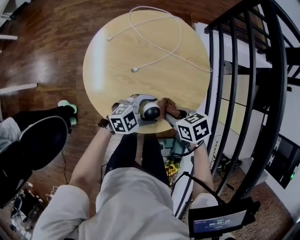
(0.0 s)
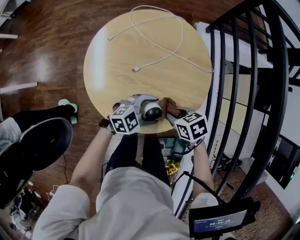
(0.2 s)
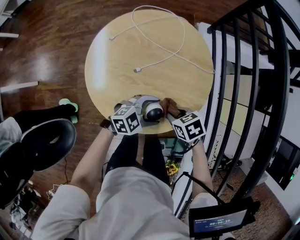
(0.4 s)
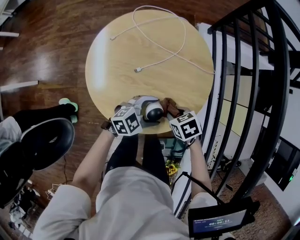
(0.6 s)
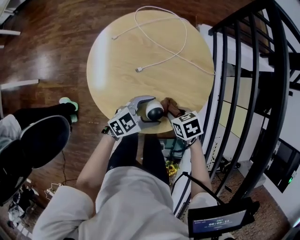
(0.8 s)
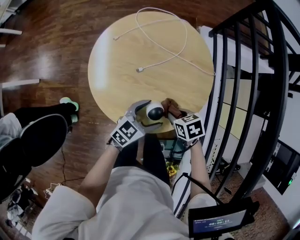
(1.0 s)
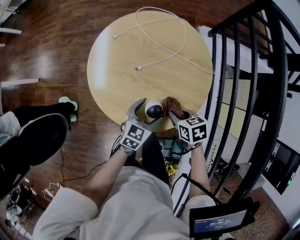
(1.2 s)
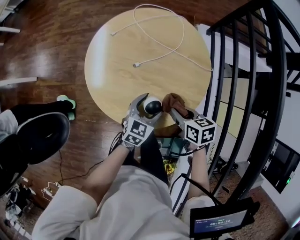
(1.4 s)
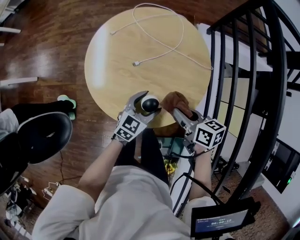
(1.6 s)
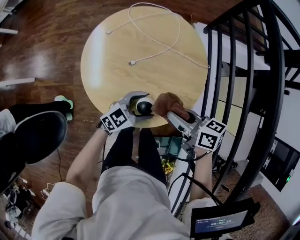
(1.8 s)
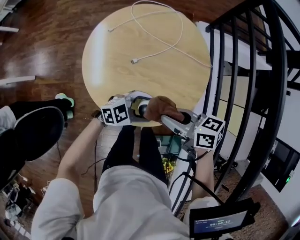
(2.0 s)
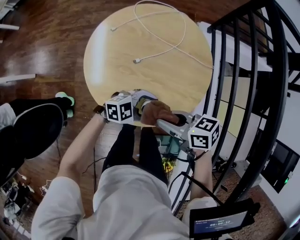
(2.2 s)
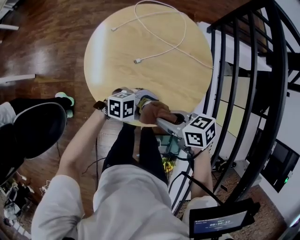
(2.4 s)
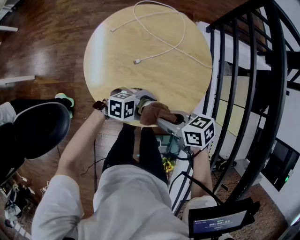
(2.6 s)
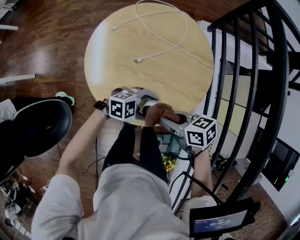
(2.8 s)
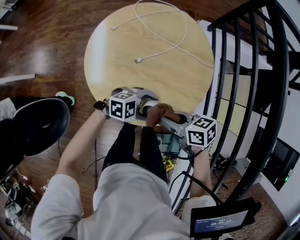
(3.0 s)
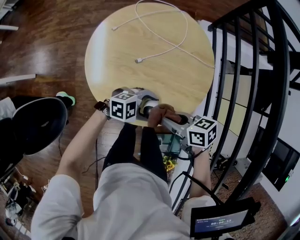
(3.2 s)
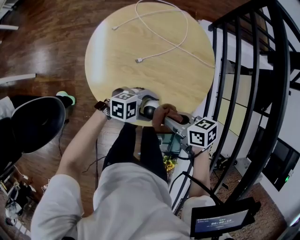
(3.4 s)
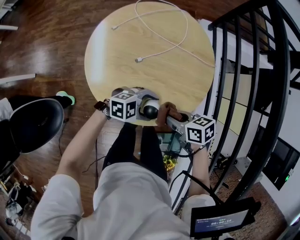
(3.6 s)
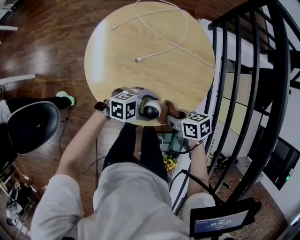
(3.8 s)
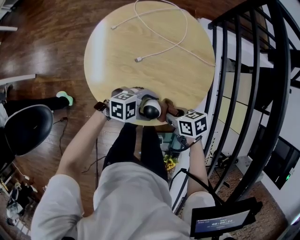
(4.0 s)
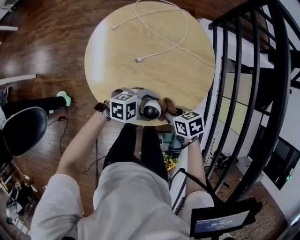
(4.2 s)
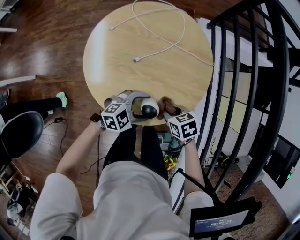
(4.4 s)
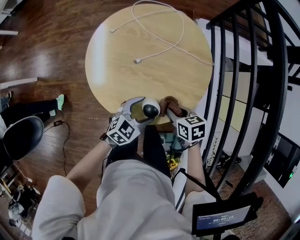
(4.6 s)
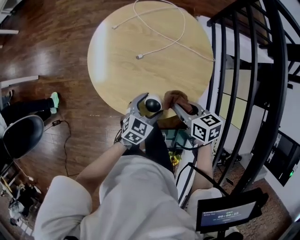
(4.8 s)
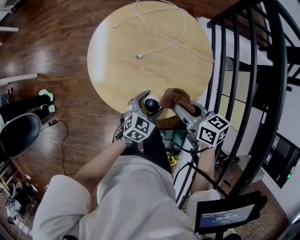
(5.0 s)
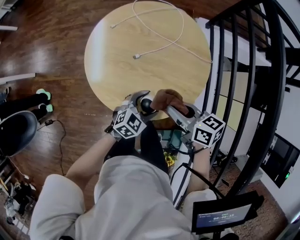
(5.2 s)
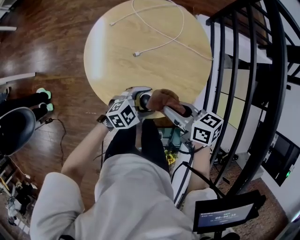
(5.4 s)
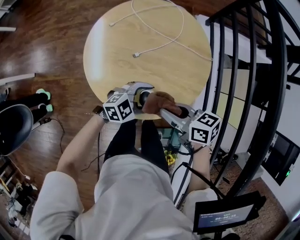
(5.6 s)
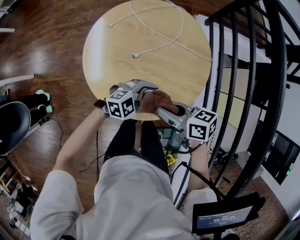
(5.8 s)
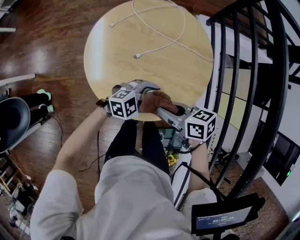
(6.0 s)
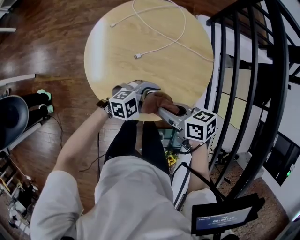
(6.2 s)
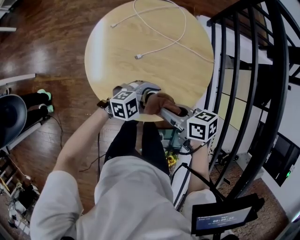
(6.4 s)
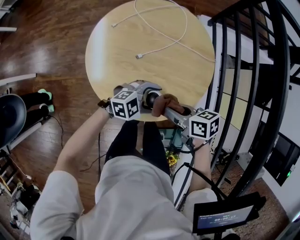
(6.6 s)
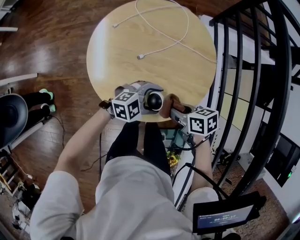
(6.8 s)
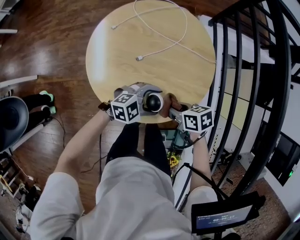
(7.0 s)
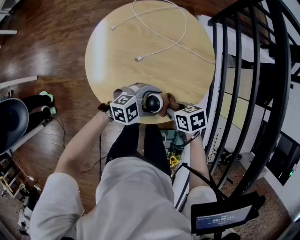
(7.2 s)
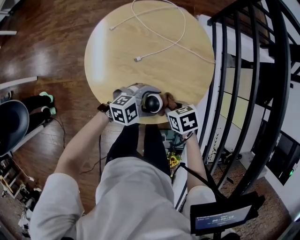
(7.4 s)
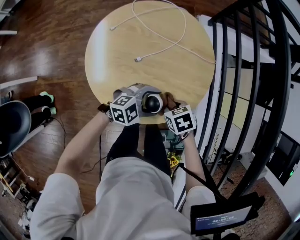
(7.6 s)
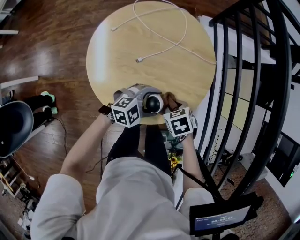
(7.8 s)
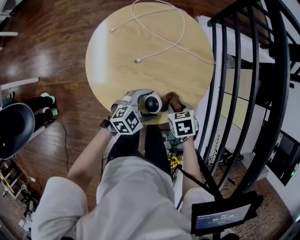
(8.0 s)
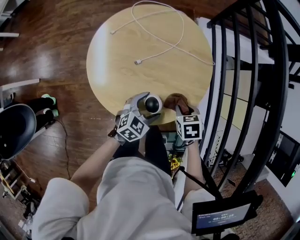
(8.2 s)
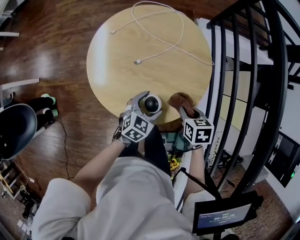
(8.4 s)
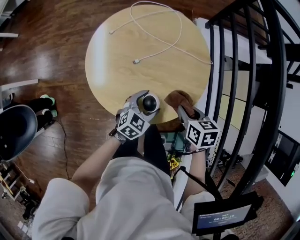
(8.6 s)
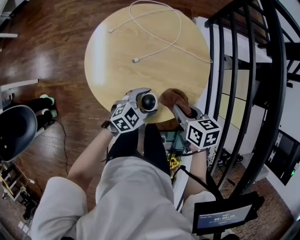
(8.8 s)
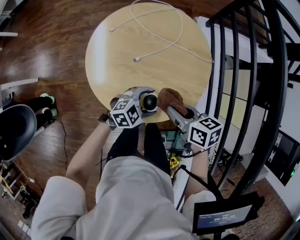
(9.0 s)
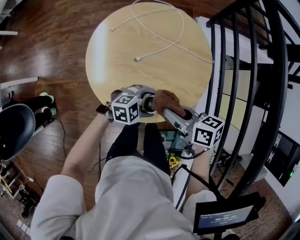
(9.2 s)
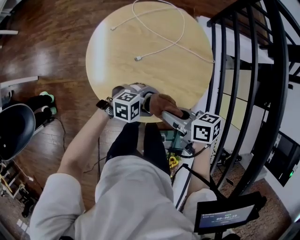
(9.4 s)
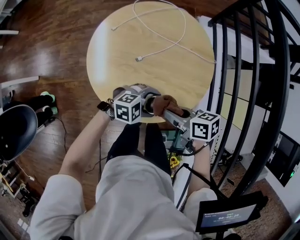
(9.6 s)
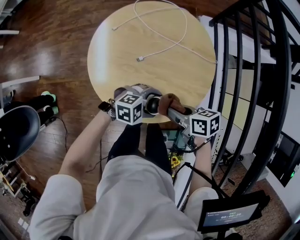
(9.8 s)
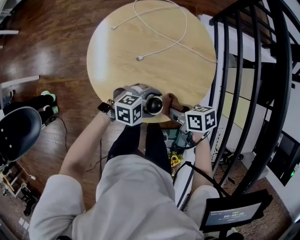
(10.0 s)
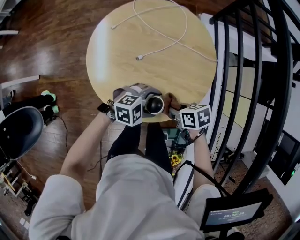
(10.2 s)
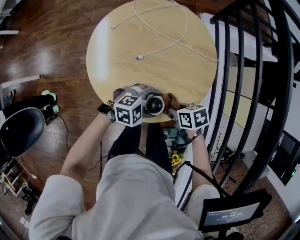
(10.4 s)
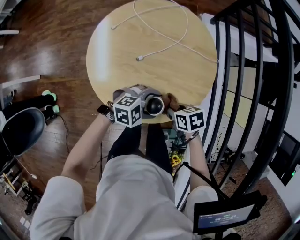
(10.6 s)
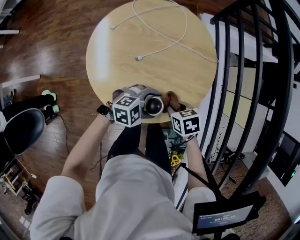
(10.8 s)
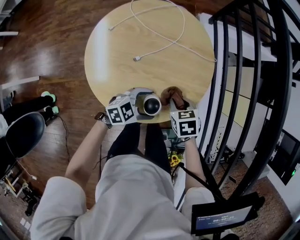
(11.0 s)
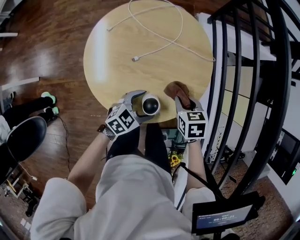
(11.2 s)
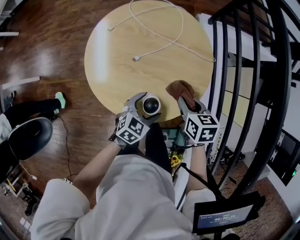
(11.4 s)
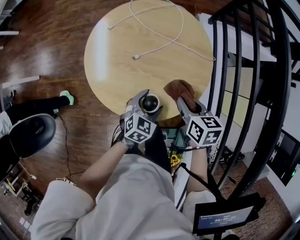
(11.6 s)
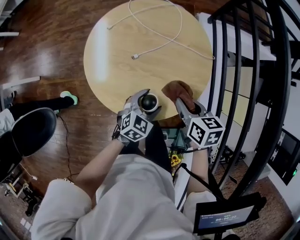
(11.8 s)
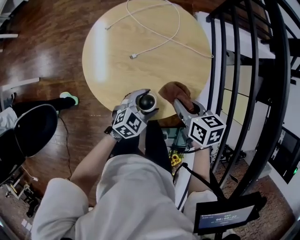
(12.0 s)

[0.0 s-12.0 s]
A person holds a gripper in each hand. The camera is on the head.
0.0 to 1.6 s: The right gripper shifts by roughly 5 cm, and turns by some 30 degrees. The left gripper rotates approximately 40 degrees.
1.6 to 3.0 s: The right gripper shifts by about 5 cm, while the left gripper changes place by approximately 5 cm, and rotates roughly 60 degrees.
3.0 to 4.4 s: The right gripper is displaced downward by about 10 cm, and rotates about 30 degrees.
4.4 to 6.0 s: The right gripper is displaced upward by approximately 10 cm, and changes its angle by approximately 30 degrees.
6.0 to 7.6 s: The right gripper heads downward, covering approximately 10 cm, and angles its fingers downward, by some 40 degrees.
7.6 to 9.0 s: The right gripper moves upward, some 10 cm, and tips its fingers upward by roughly 30 degrees.
9.0 to 10.4 s: The right gripper goes roughly 10 cm downward, and changes its angle by about 20 degrees.
10.4 to 12.0 s: The left gripper swivels approximately 40 degrees. The right gripper moves upward, about 10 cm, and rotates roughly 20 degrees.

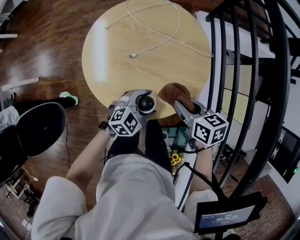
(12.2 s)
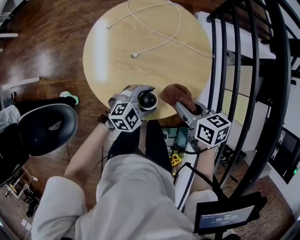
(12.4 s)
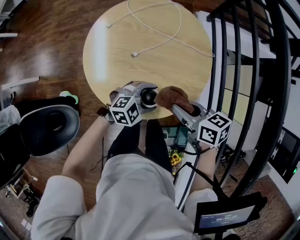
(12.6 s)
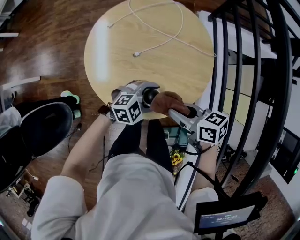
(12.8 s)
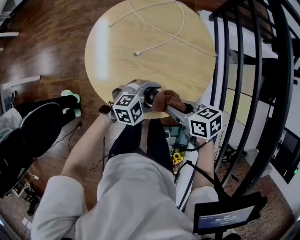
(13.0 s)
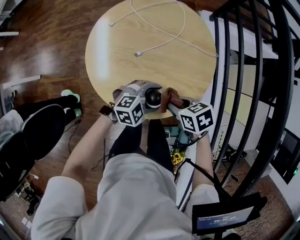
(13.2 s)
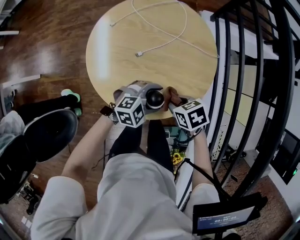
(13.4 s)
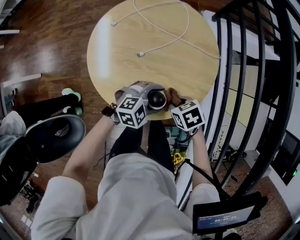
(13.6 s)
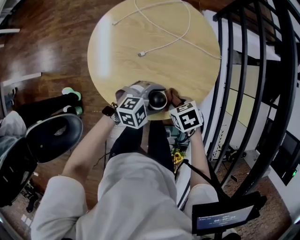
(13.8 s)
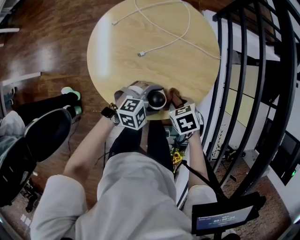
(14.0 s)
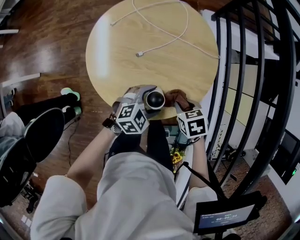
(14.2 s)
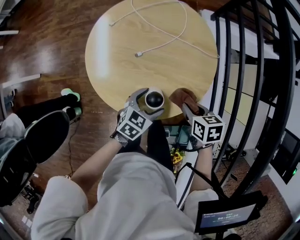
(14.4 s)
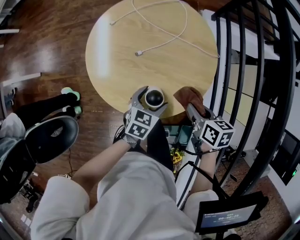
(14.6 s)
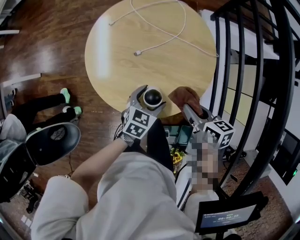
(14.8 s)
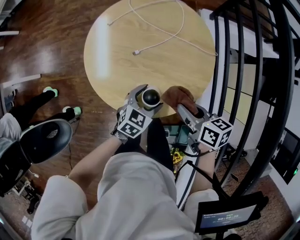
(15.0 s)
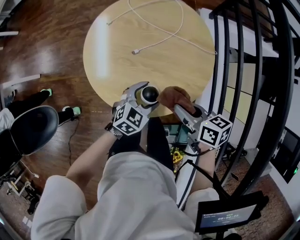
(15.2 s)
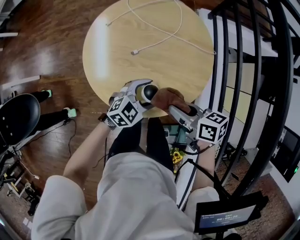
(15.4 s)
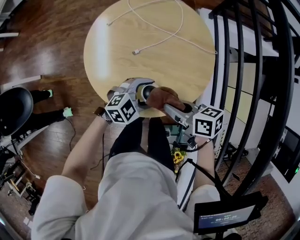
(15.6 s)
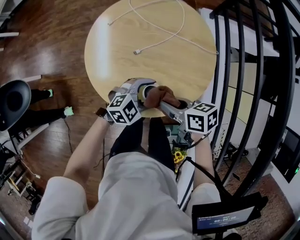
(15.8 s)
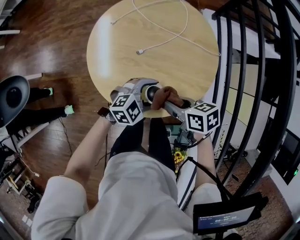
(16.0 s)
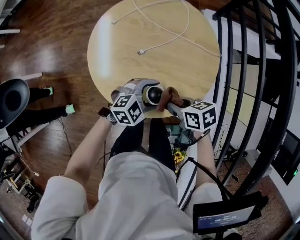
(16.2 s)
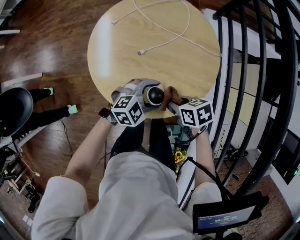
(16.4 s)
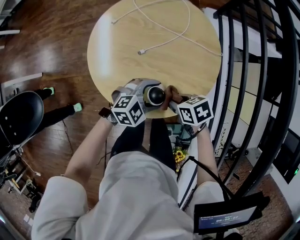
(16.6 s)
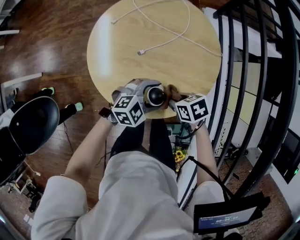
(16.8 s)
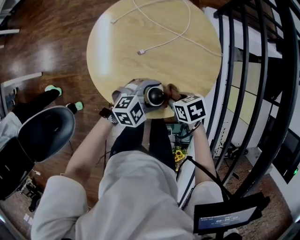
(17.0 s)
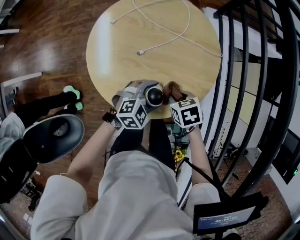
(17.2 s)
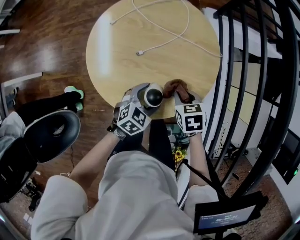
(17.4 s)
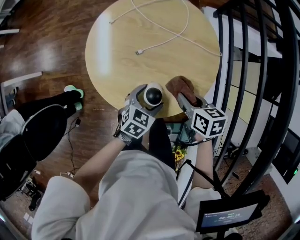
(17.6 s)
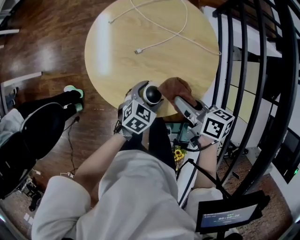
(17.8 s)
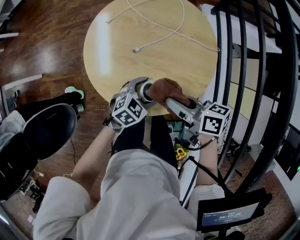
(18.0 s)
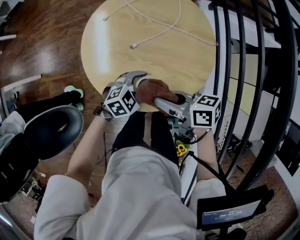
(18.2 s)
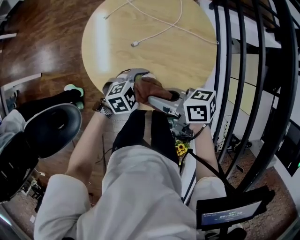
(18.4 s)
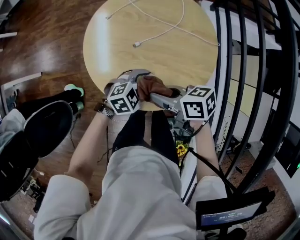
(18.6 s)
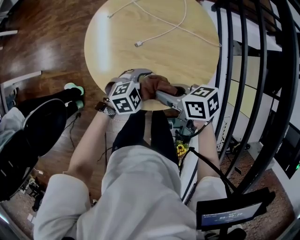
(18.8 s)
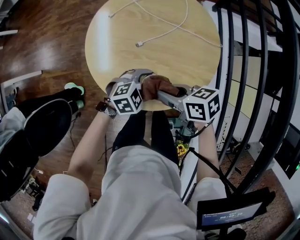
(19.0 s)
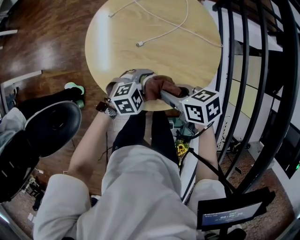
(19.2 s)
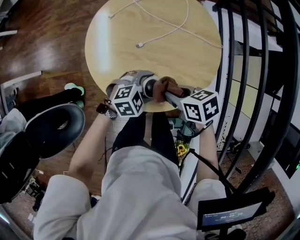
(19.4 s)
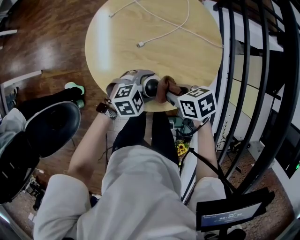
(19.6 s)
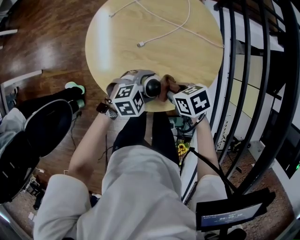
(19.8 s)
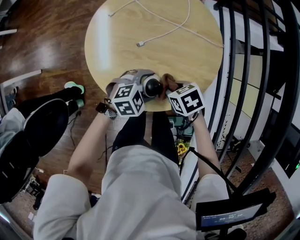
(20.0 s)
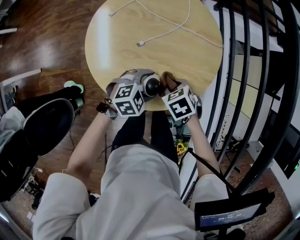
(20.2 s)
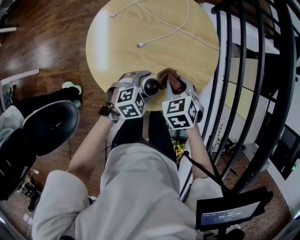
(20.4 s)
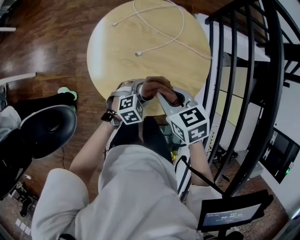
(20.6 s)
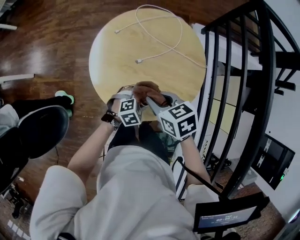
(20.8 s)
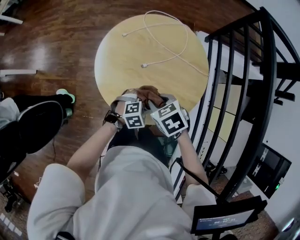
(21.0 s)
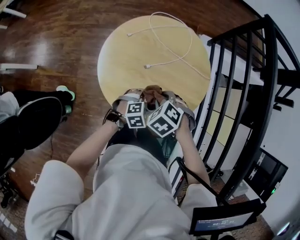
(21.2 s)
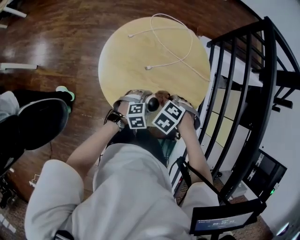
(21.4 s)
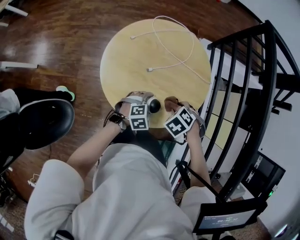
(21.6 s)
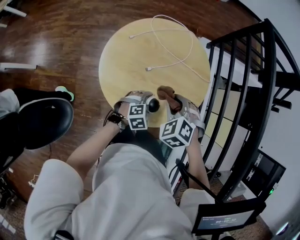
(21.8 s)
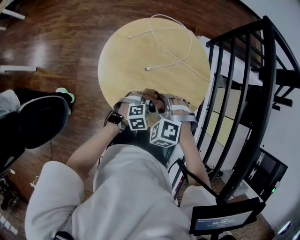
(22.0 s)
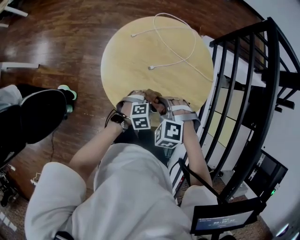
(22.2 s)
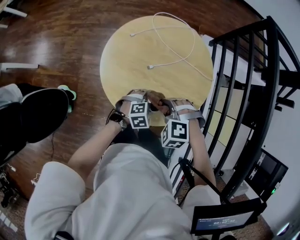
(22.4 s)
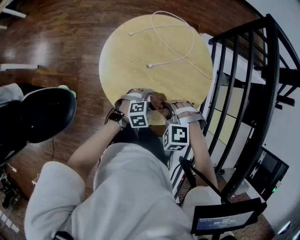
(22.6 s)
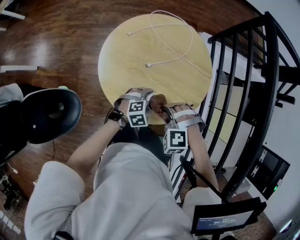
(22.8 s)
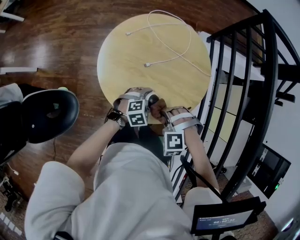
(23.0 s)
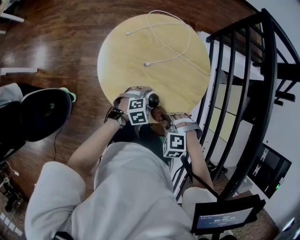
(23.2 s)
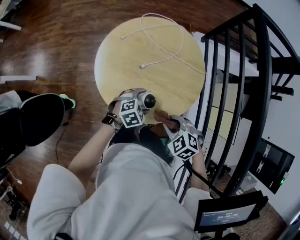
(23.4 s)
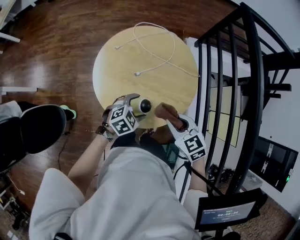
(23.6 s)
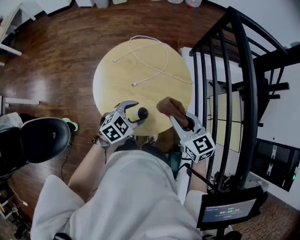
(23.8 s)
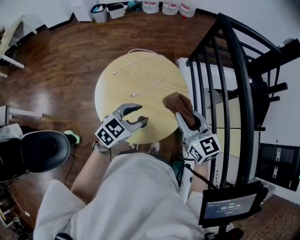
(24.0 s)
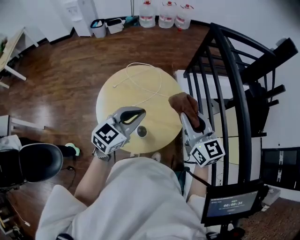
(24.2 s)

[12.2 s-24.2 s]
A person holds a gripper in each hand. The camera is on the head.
12.2 to 13.8 s: The right gripper heads downward, covering approximately 10 cm, and turns by about 30 degrees.
13.8 to 15.2 s: The left gripper changes its angle by roughly 40 degrees. Meanwhile the right gripper shifts about 10 cm upward, and tips its fingers upward by approximately 30 degrees.
15.2 to 16.6 s: The right gripper is displaced downward by roughly 10 cm, and rotates some 30 degrees; the left gripper turns by approximately 30 degrees.
16.6 to 18.2 s: The right gripper moves upward, approximately 10 cm, and tips its fingers upward by some 40 degrees.
18.2 to 19.8 s: The right gripper shifts roughly 10 cm downward, and angles its fingers downward, by about 40 degrees.
19.8 to 21.2 s: The right gripper moves upward, roughly 5 cm, and rotates around the line of its fingers by some 40 degrees, counterclockwise from behind.
21.2 to 22.6 s: The right gripper reaches about 5 cm upward, then returns, and turns by about 40 degrees.
22.6 to 24.2 s: Both grippers travel together upward, about 30 cm. The left gripper points its fingers roughly 40 degrees further upward, and closes up; the right gripper angles its fingers upward, by some 60 degrees.
